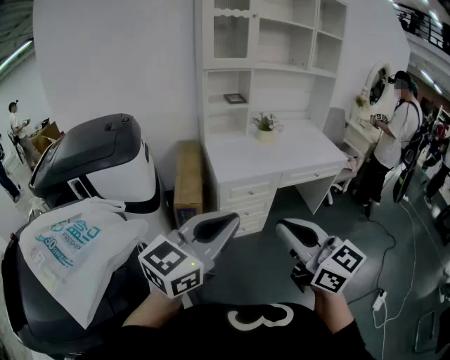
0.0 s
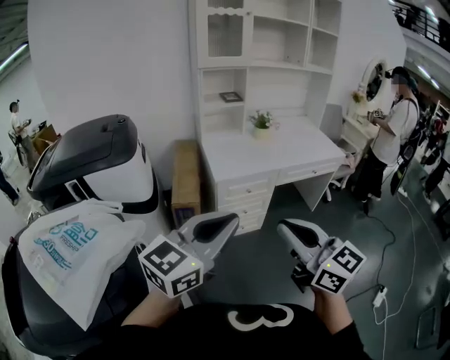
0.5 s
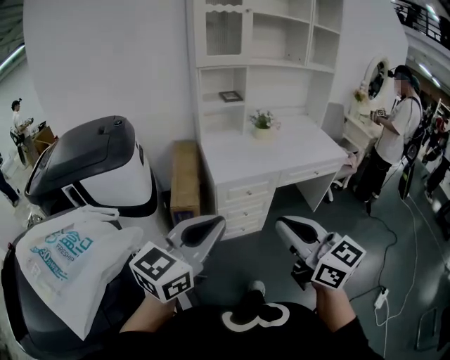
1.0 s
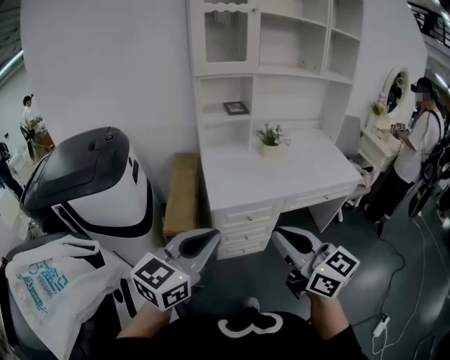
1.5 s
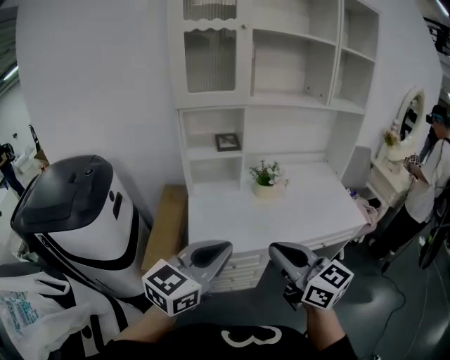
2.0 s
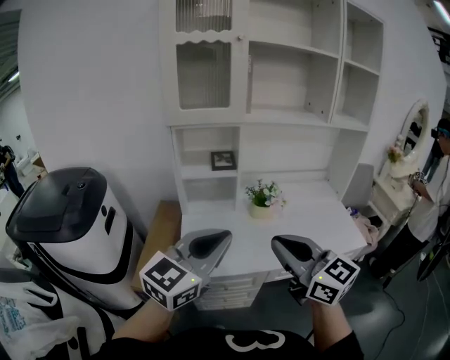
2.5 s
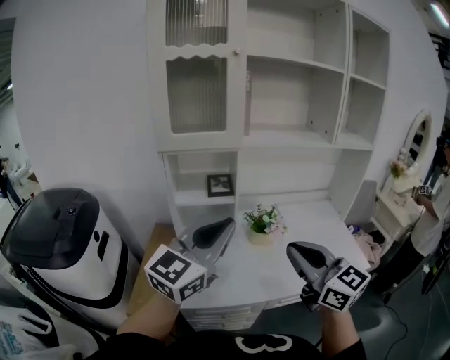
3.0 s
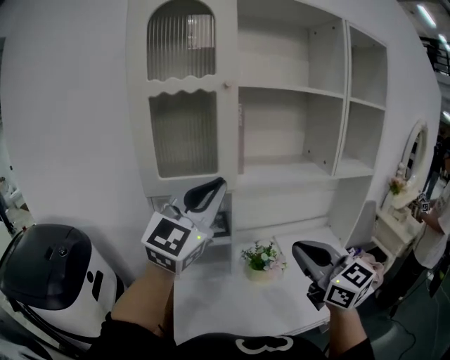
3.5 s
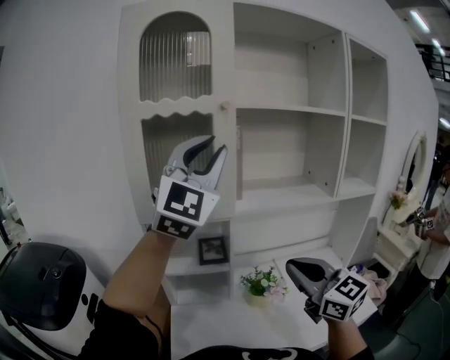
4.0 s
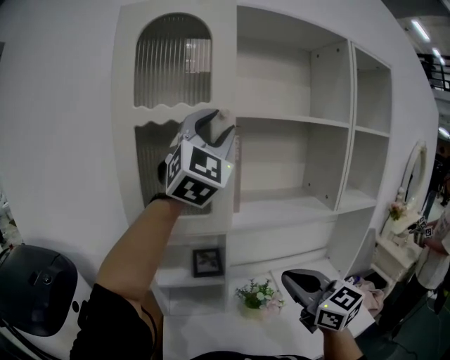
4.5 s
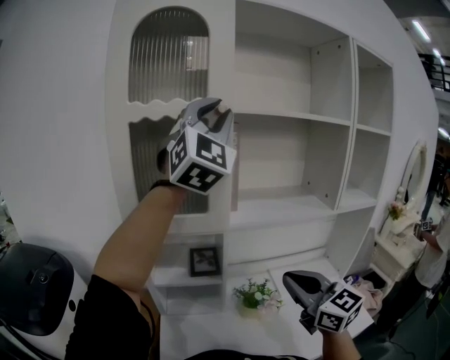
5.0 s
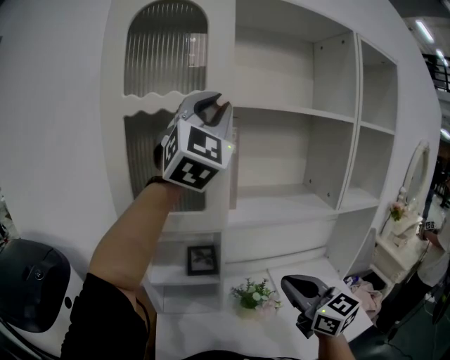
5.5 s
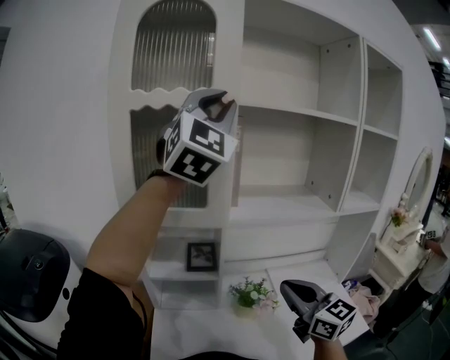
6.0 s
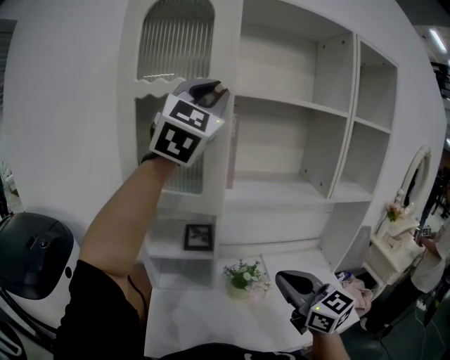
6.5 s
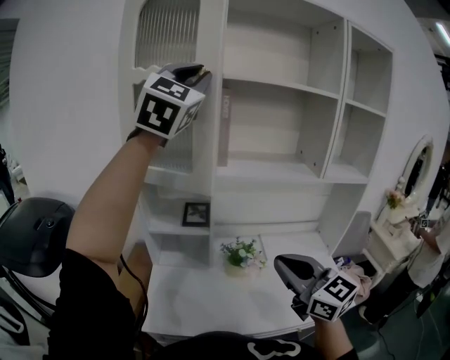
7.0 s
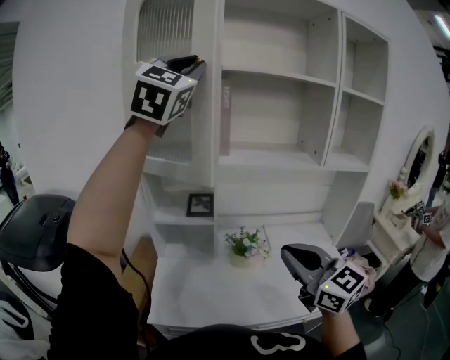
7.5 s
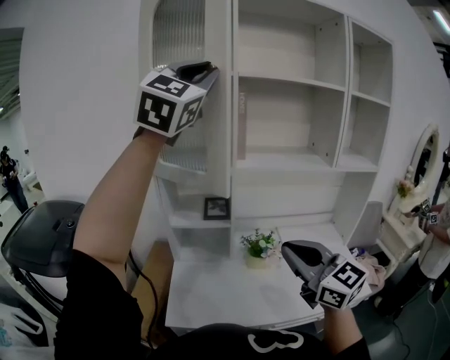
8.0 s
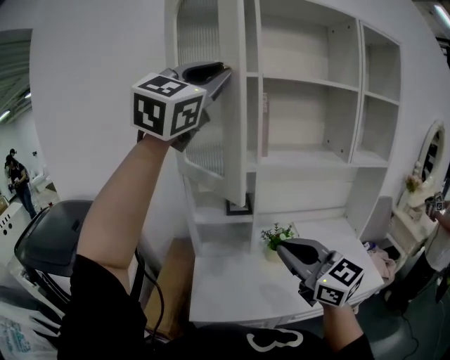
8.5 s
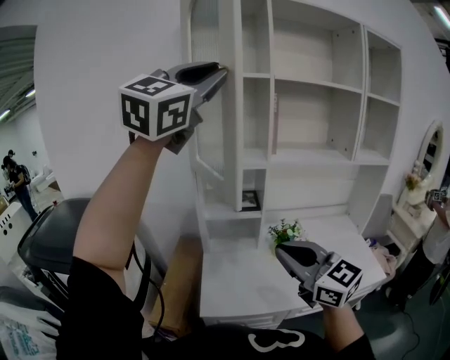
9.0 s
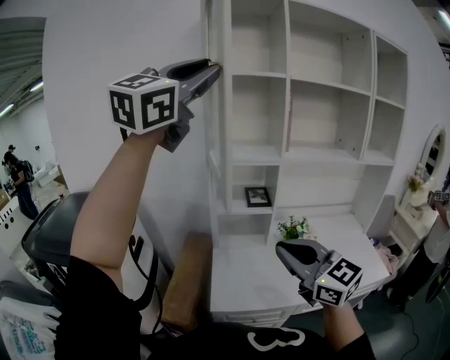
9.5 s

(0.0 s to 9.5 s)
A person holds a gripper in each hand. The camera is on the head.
0.0 s - 2.0 s: The two grippers go about 40 cm forward.
2.0 s - 4.0 s: The left gripper is displaced forward and upward by some 60 cm, and rolls clockwise, seen from behind, by approximately 50 degrees. Meanwhile the right gripper is displaced forward and upward by some 35 cm.
4.0 s - 5.5 s: The right gripper is displaced forward by approximately 5 cm. Meanwhile the left gripper heads forward and upward, covering about 10 cm.
5.5 s - 7.5 s: The two grippers go roughly 15 cm backward.
7.5 s - 9.5 s: The left gripper heads to the left and backward, covering roughly 25 cm, and turns by approximately 30 degrees. Meanwhile the right gripper travels to the left by approximately 25 cm.

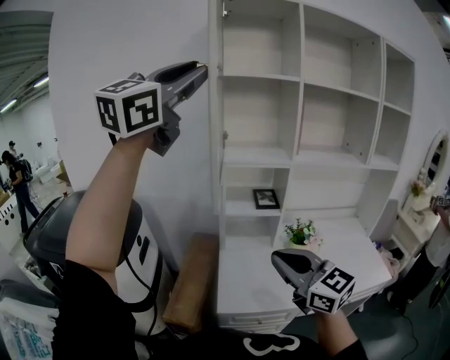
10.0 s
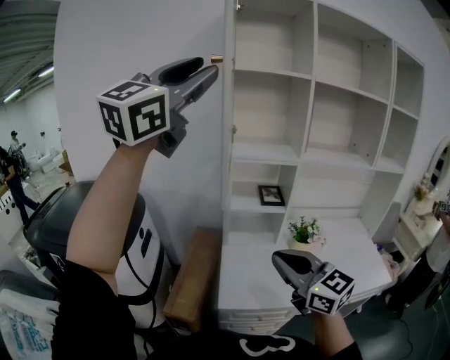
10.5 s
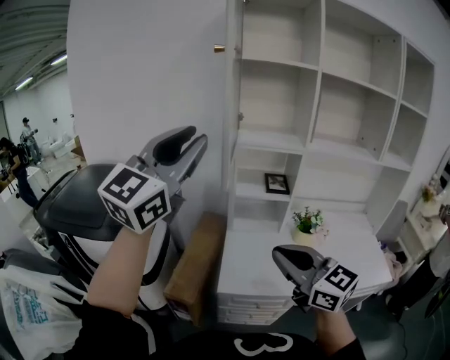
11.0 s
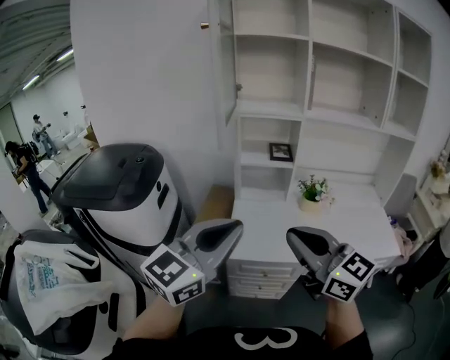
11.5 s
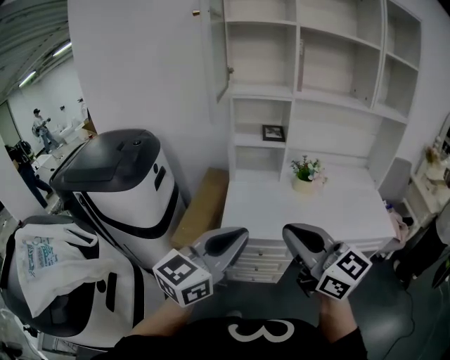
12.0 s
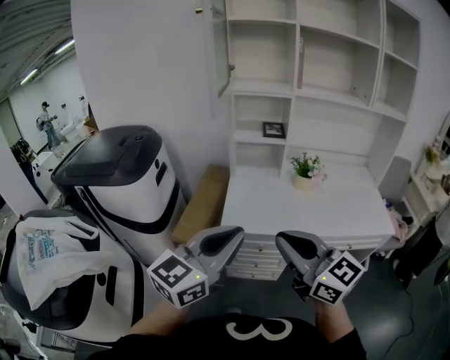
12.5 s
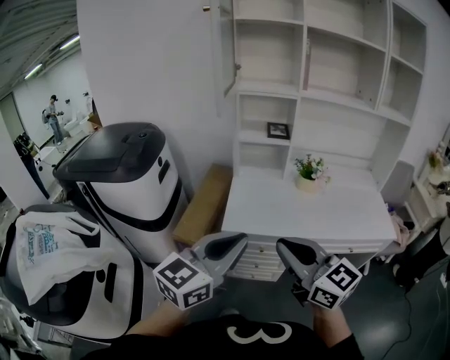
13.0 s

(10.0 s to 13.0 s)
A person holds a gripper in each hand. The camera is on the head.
10.0 s - 11.5 s: The left gripper is displaced downward and backward by some 40 cm, turns by some 30 degrees, and closes. Meanwhile the right gripper is displaced backward by roughly 10 cm.
11.5 s - 13.0 s: The left gripper is displaced downward and backward by approximately 15 cm, while the right gripper heads backward and downward, covering approximately 10 cm.

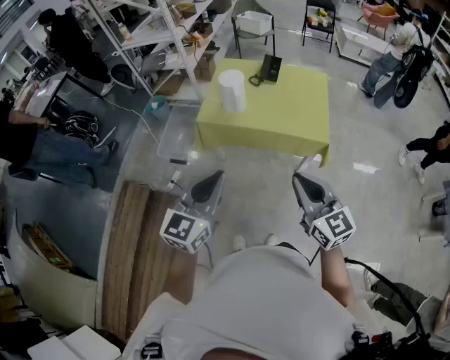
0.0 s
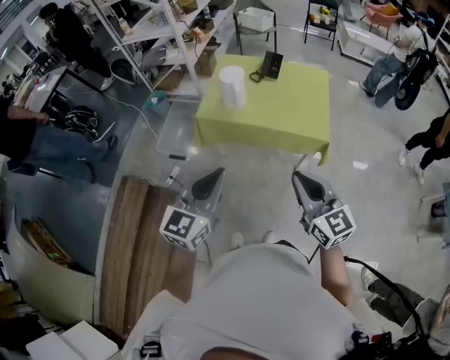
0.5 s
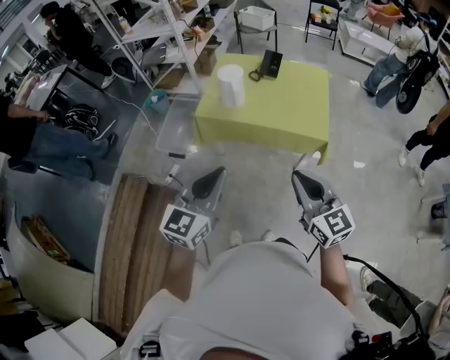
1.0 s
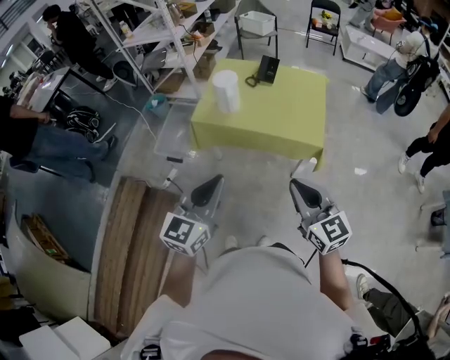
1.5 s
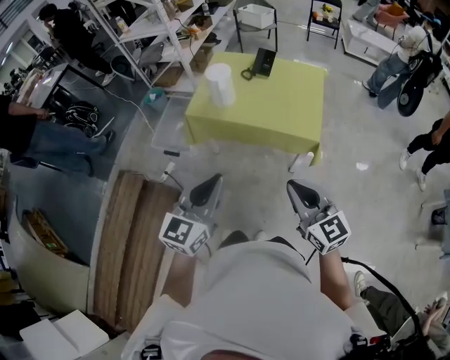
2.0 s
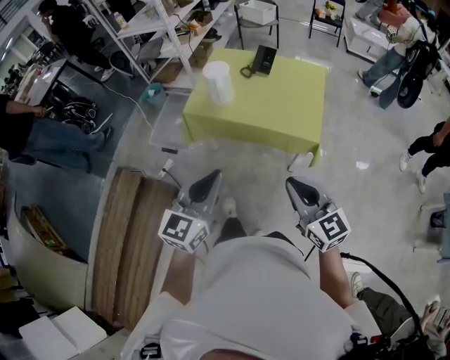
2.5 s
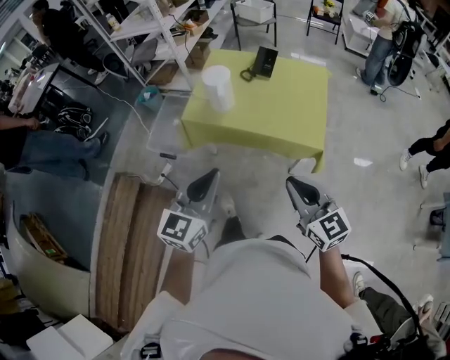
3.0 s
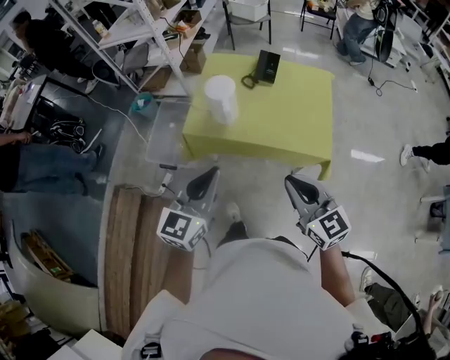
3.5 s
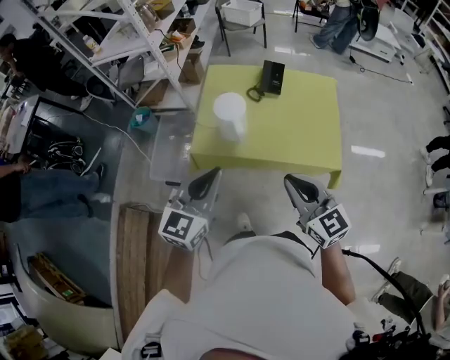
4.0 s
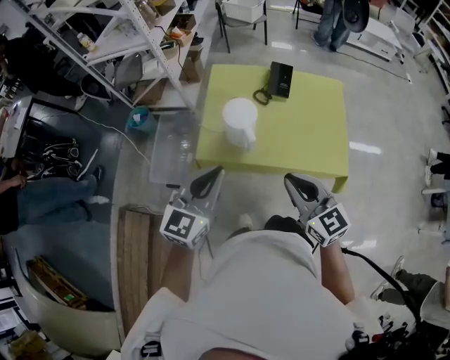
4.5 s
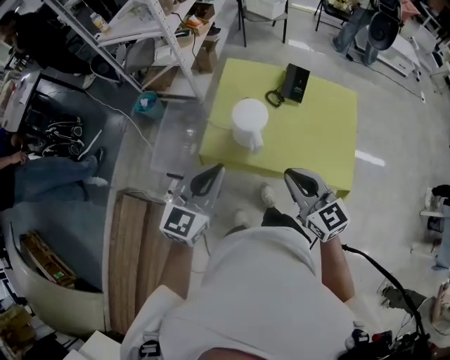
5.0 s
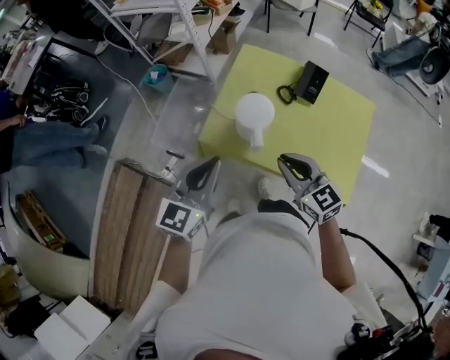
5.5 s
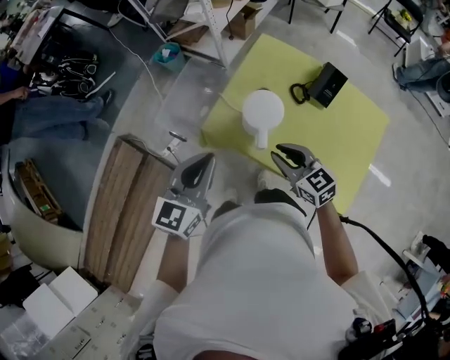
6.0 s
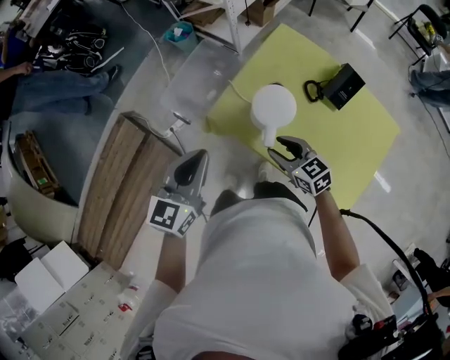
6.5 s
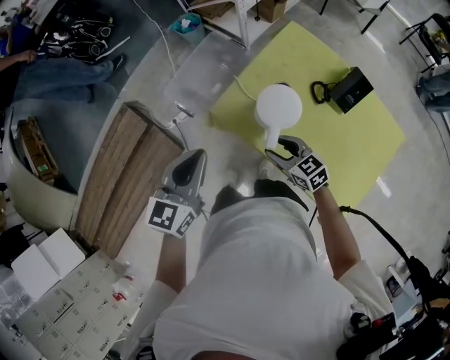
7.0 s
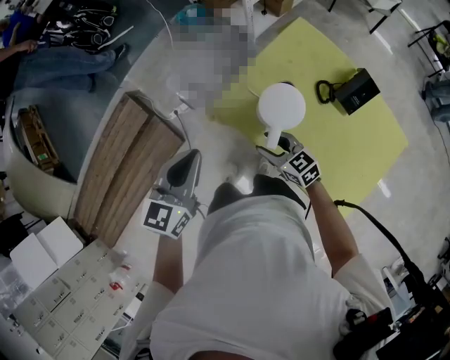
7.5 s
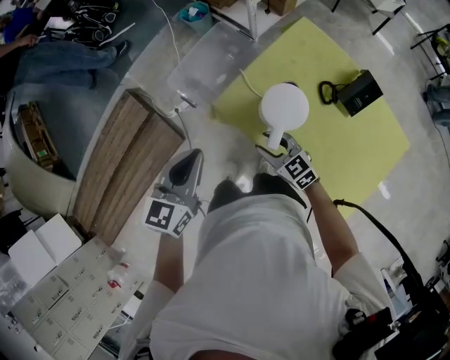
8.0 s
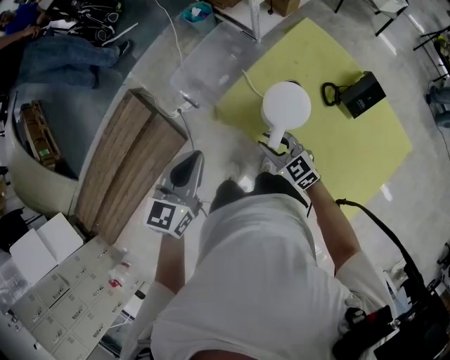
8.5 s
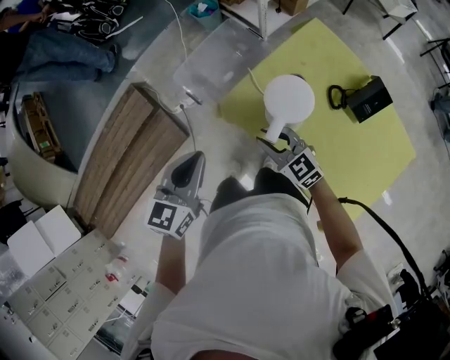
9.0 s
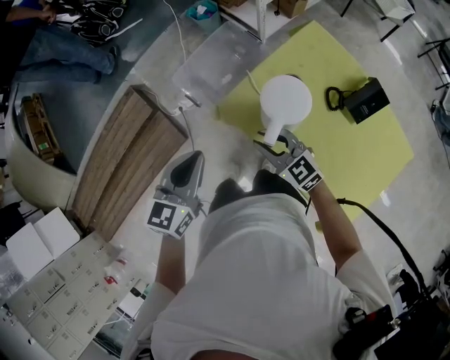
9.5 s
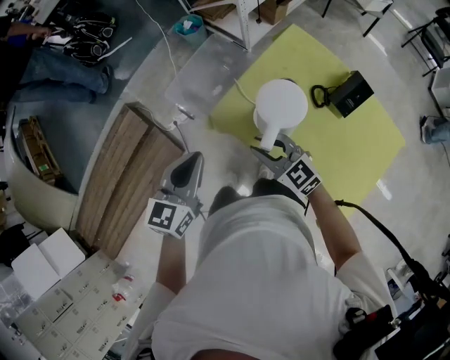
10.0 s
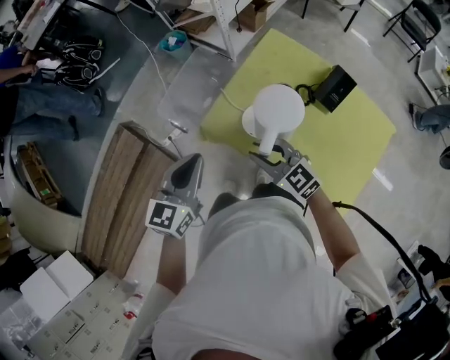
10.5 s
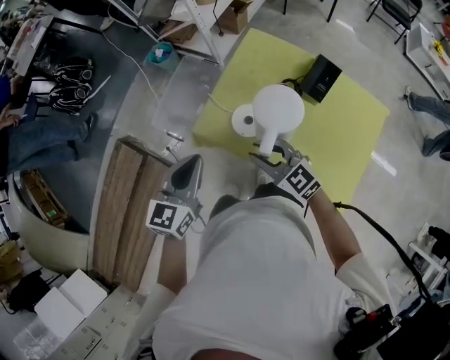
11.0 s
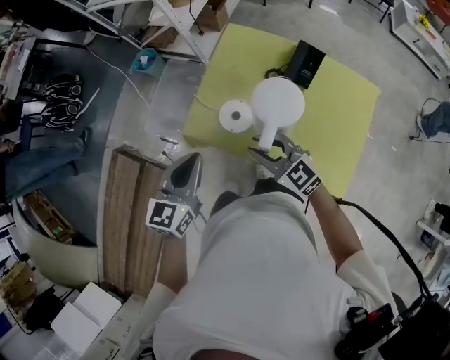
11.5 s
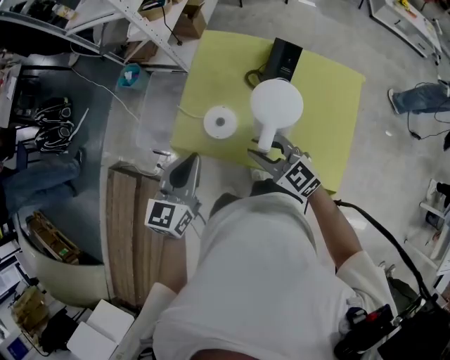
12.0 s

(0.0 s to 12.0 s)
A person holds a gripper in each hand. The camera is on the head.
0.0 s - 2.0 s: The grippers both shift to the right by about 10 cm.
2.0 s - 4.0 s: The right gripper is displaced forward and to the left by roughly 30 cm. Meanwhile the left gripper shifts approximately 30 cm forward.
4.0 s - 6.0 s: The left gripper ends up roughly 15 cm from where it was, and turns by some 30 degrees. The right gripper shifts by approximately 30 cm, and swivels some 40 degrees.
6.0 s - 8.0 s: The left gripper shifts about 5 cm to the left. Meanwhile the right gripper travels downward and to the left by some 15 cm, and swivels roughly 20 degrees.
8.0 s - 10.0 s: The right gripper is displaced upward by about 10 cm.
10.0 s - 12.0 s: The right gripper is displaced to the right and backward by roughly 15 cm, and turns by approximately 20 degrees, while the left gripper shifts roughly 15 cm to the right, and turns by roughly 20 degrees.

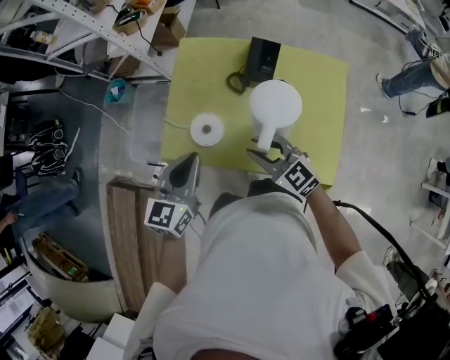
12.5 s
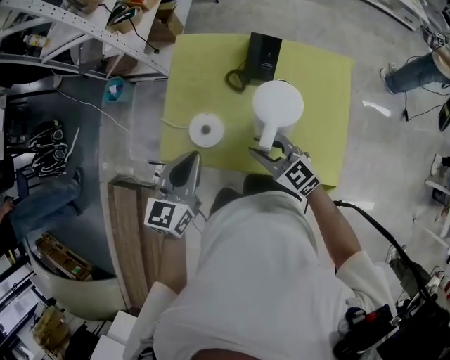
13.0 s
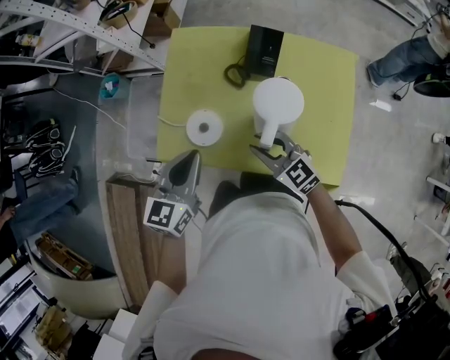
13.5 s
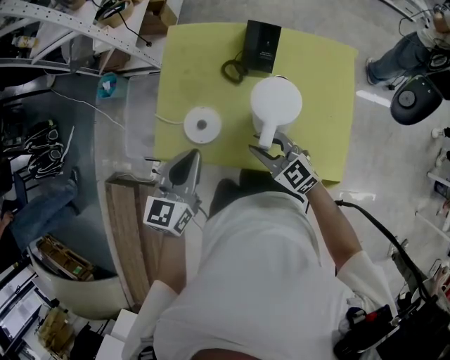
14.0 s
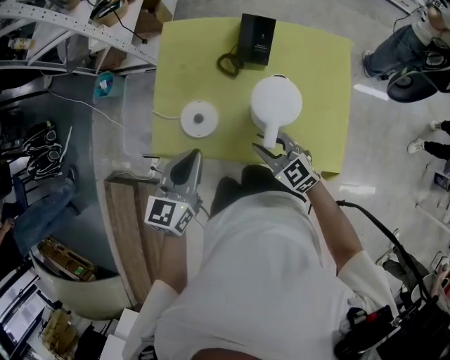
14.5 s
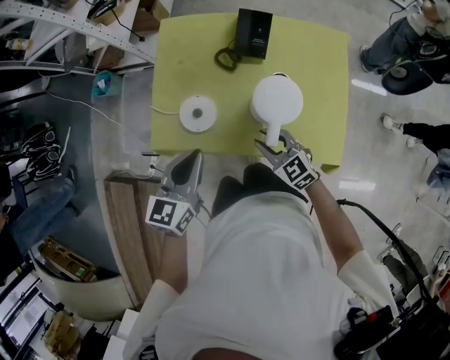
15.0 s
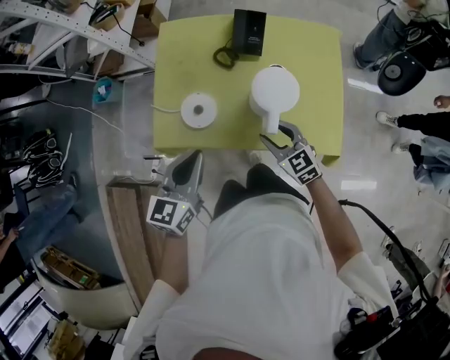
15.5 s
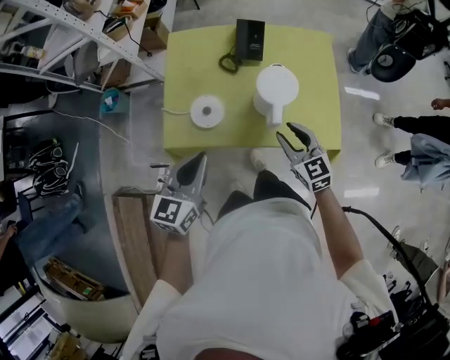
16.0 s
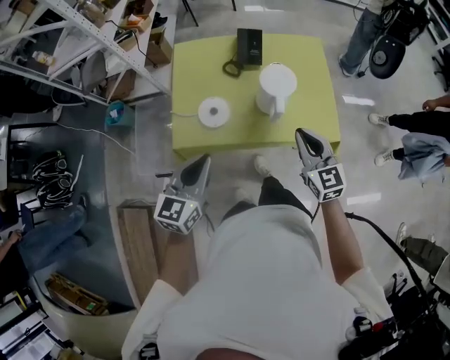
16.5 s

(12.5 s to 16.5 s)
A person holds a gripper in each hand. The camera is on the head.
12.5 s - 14.5 s: The left gripper shifts approximately 5 cm downward; the right gripper moves downward, approximately 10 cm.
14.5 s - 16.5 s: The left gripper moves backward, upward and to the left, approximately 20 cm. The right gripper is displaced upward and backward by about 20 cm, rotates some 40 degrees, and closes.
